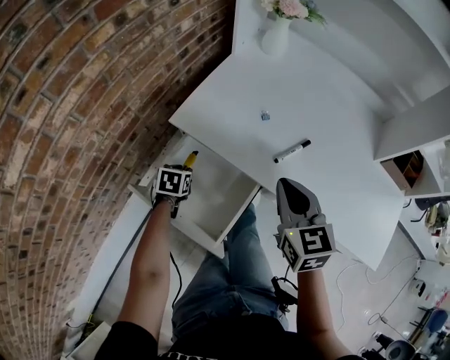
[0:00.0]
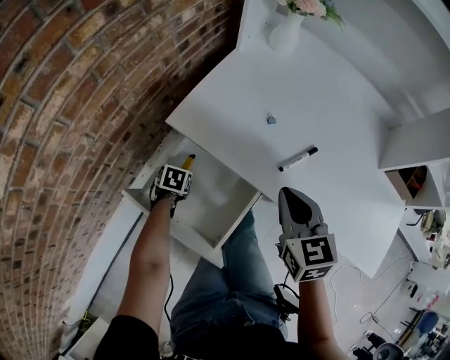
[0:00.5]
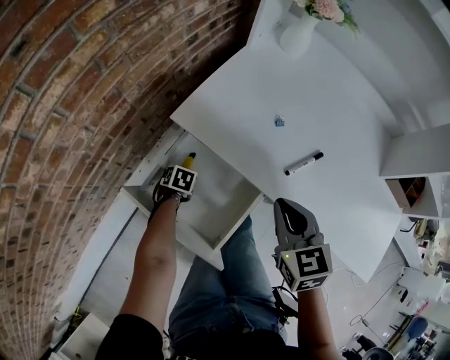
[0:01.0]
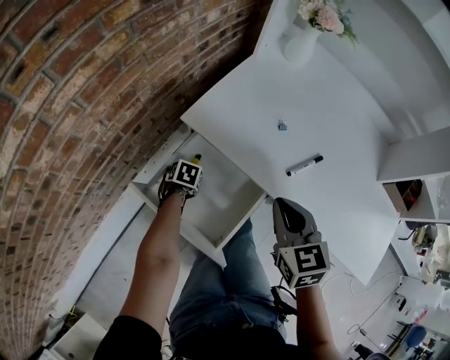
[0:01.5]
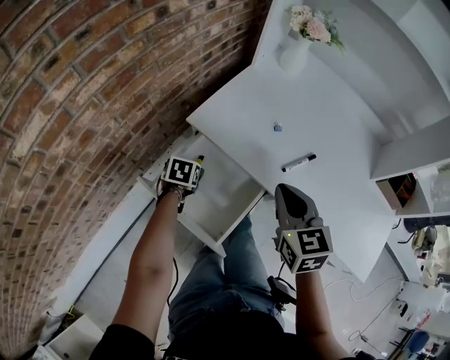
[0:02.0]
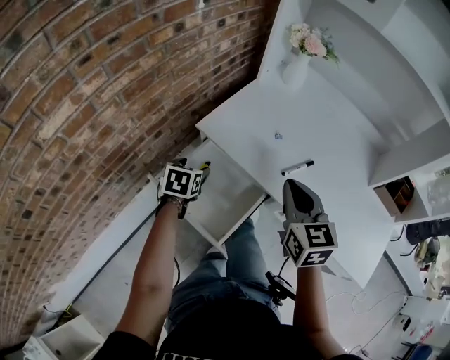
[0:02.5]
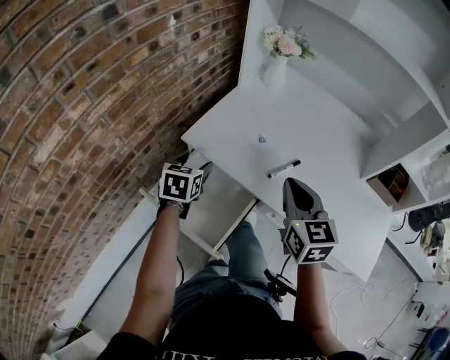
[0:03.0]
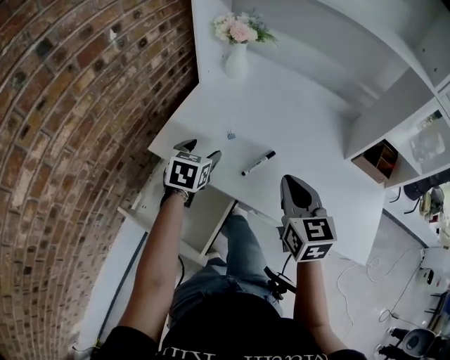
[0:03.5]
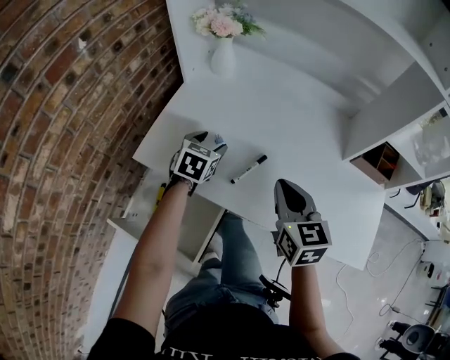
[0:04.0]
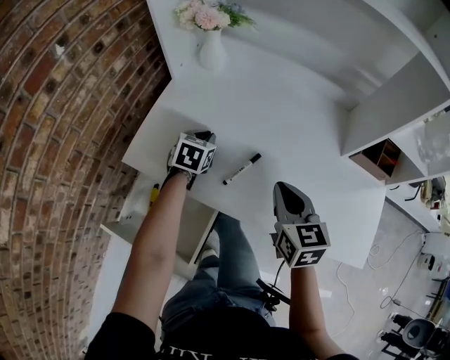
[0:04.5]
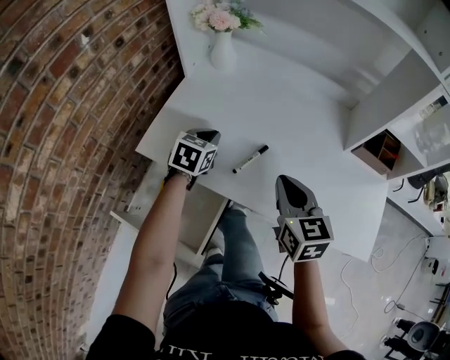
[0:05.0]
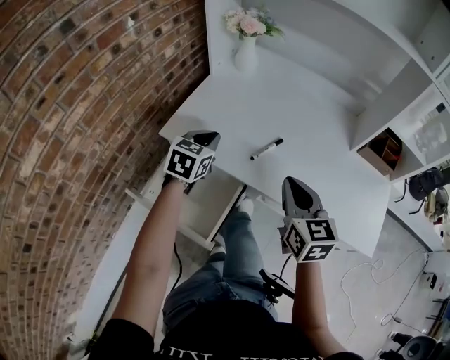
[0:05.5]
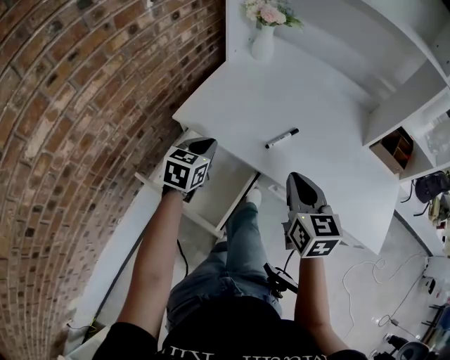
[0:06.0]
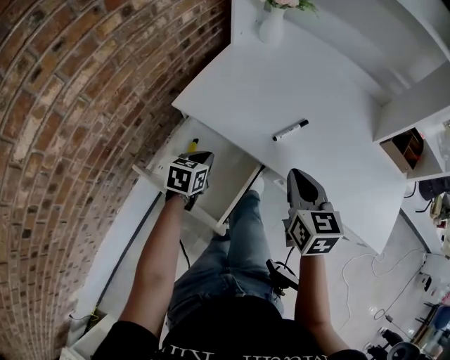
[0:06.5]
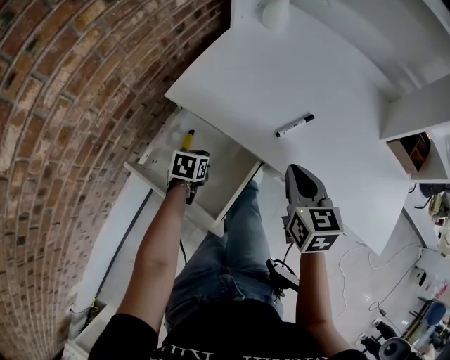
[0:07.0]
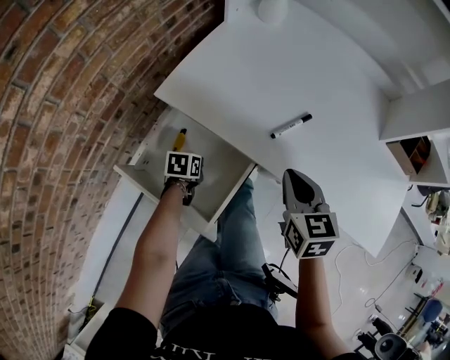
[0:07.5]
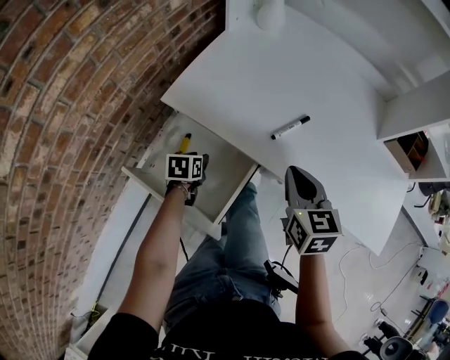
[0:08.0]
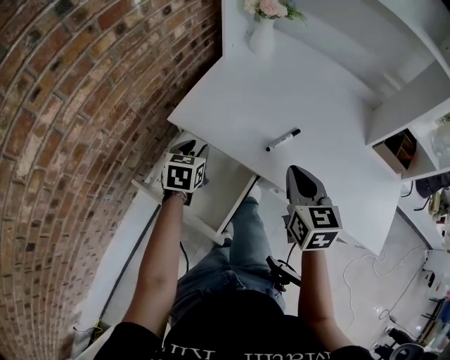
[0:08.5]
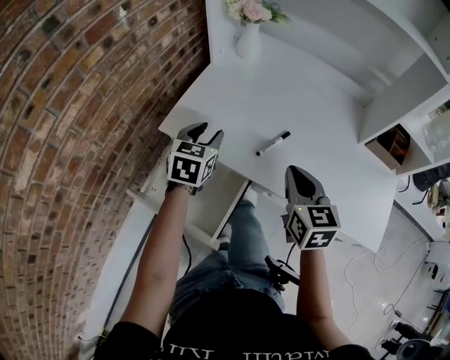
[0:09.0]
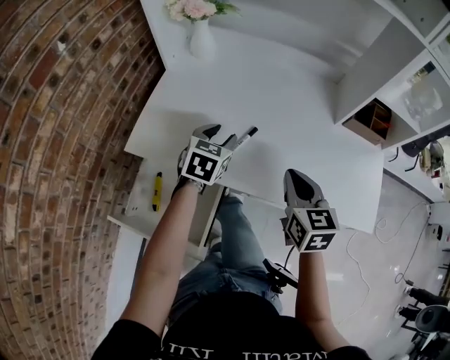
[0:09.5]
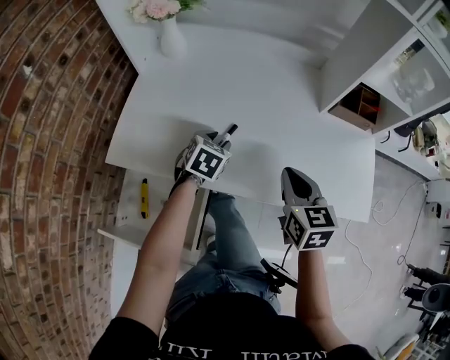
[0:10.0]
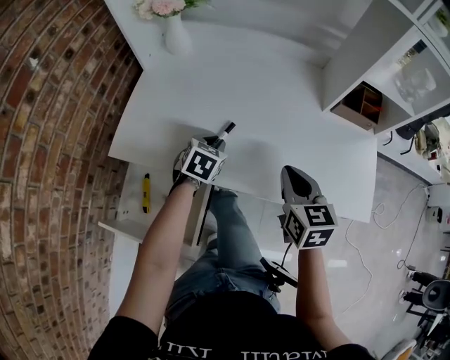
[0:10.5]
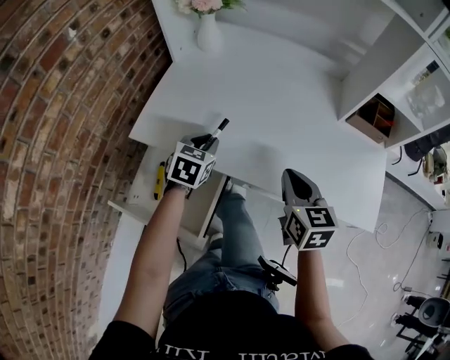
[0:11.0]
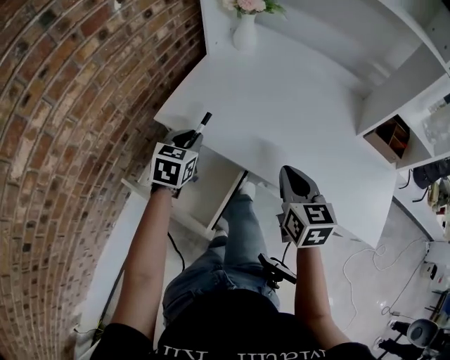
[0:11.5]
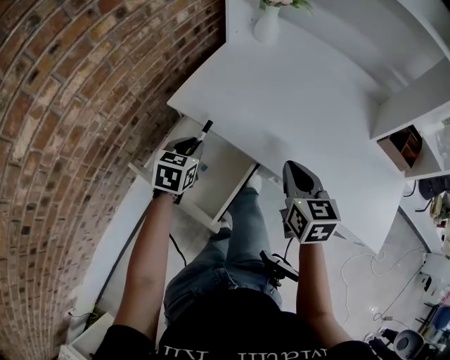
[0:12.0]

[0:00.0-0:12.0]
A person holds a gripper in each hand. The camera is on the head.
0:00.0 to 0:02.0: The left gripper travels downward and back again, some 10 cm each way, and opens its fingers.
0:02.0 to 0:04.0: The left gripper shifts about 35 cm to the right, forward and upward, and swivels about 40 degrees, while the right gripper goes some 15 cm to the right.
0:04.0 to 0:06.0: The right gripper goes some 10 cm backward, while the left gripper goes about 20 cm backward and to the left, and closes its fingers.
0:06.0 to 0:08.0: The right gripper is displaced downward by some 5 cm. Meanwhile the left gripper is displaced downward by approximately 20 cm, and turns by approximately 40 degrees.
0:08.0 to 0:10.0: The left gripper shifts some 30 cm to the right, forward and upward, and rolls clockwise, seen from behind, by roughly 50 degrees. The right gripper goes roughly 15 cm to the right, and changes its angle by roughly 20 degrees.
0:10.0 to 0:12.0: The left gripper travels to the left and backward by about 30 cm, and changes its angle by approximately 30 degrees; the right gripper heads to the left, covering about 15 cm, and swivels approximately 20 degrees.

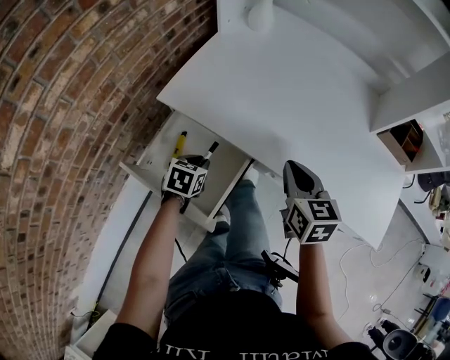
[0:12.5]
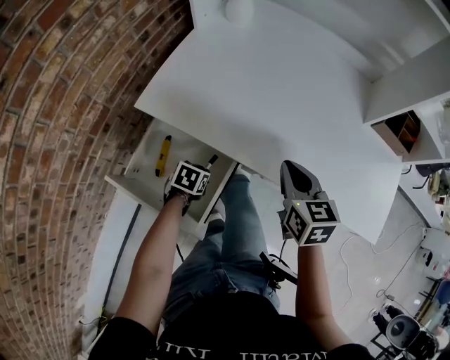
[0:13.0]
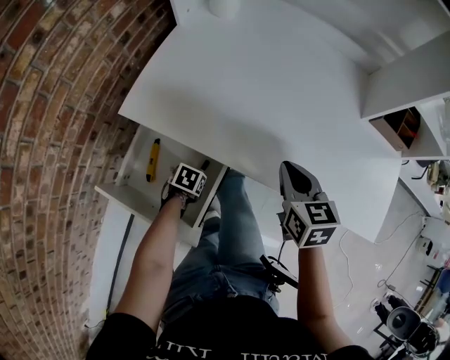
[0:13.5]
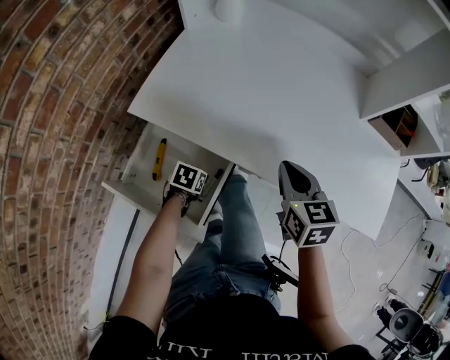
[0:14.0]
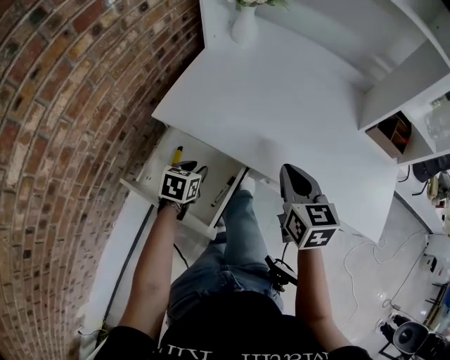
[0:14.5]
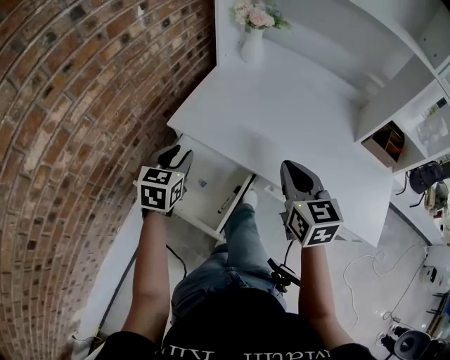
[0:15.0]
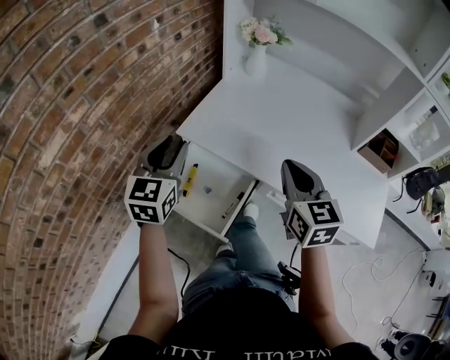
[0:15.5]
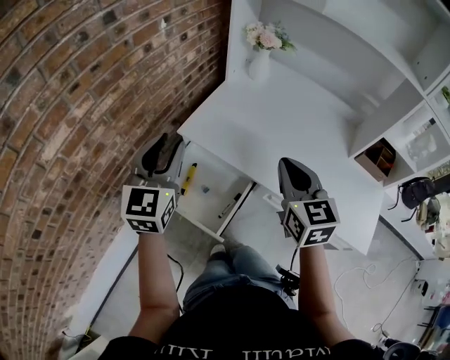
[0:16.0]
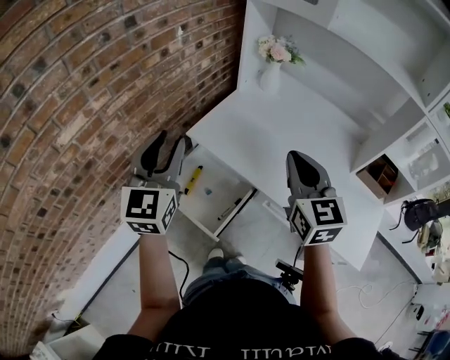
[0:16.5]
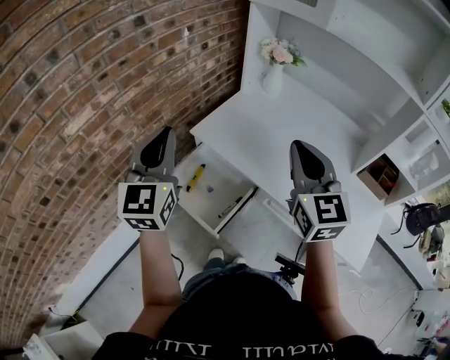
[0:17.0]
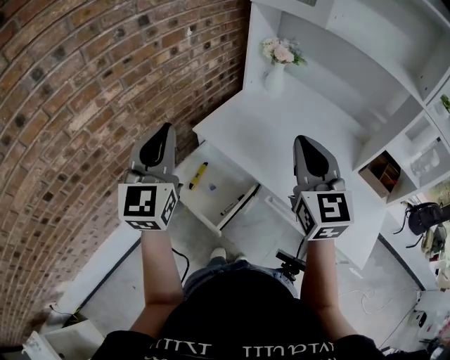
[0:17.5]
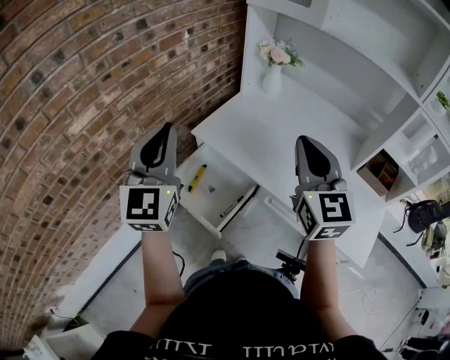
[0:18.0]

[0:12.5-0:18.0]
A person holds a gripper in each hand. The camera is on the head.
0:12.5 to 0:14.5: The left gripper reaches approximately 15 cm downward, then returns.
0:14.5 to 0:16.0: The left gripper shifts roughly 35 cm upward, and points its fingers about 50 degrees further upward. The right gripper shifts about 15 cm upward and to the left.
0:16.0 to 0:18.0: The right gripper moves upward, about 10 cm; the left gripper moves upward and backward, approximately 15 cm.

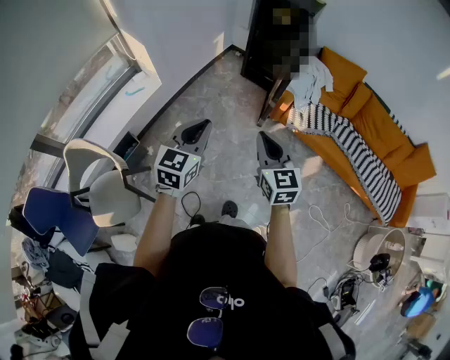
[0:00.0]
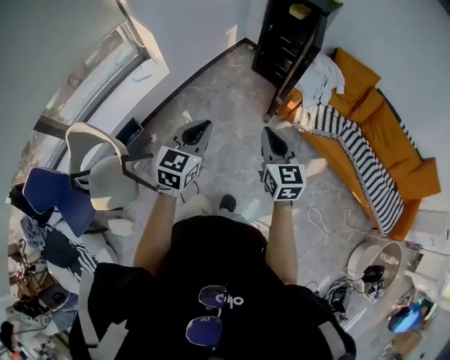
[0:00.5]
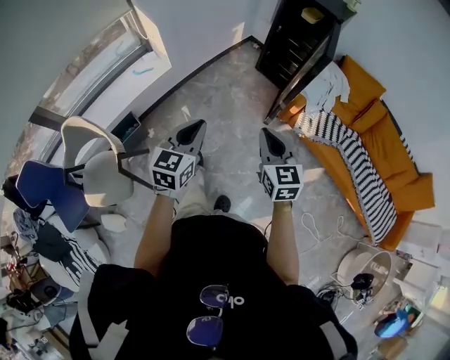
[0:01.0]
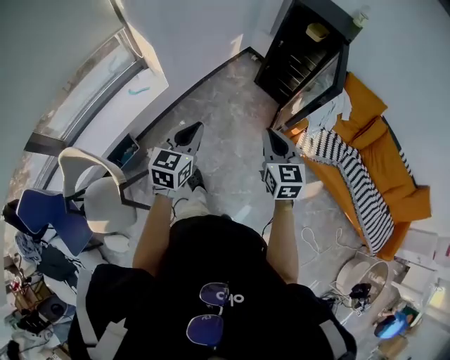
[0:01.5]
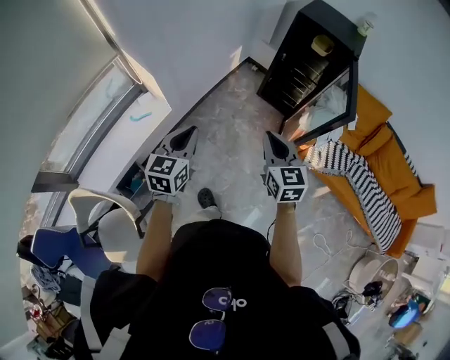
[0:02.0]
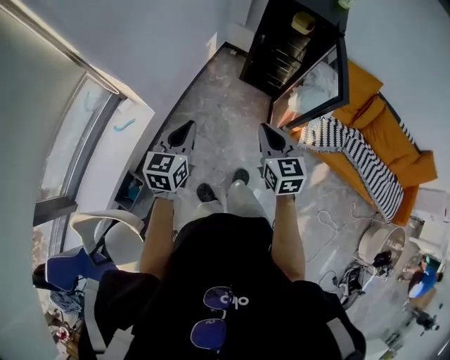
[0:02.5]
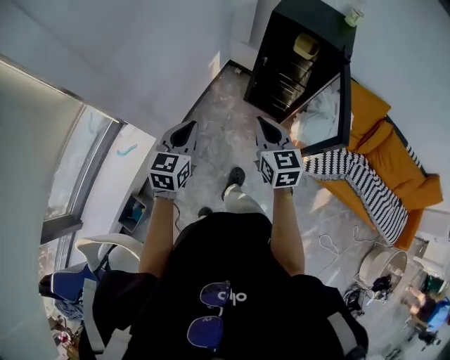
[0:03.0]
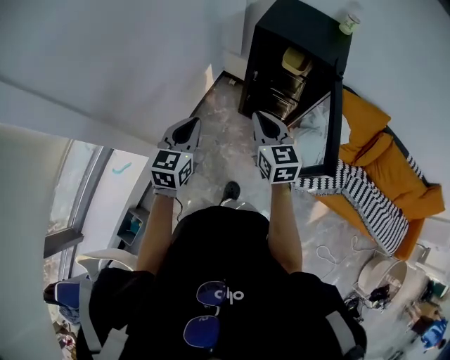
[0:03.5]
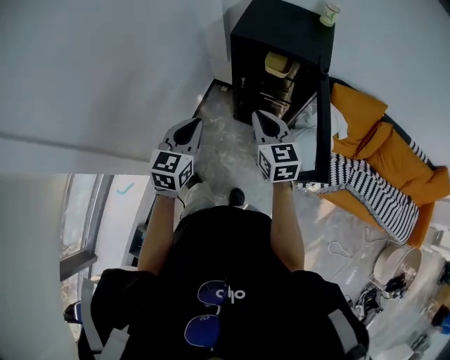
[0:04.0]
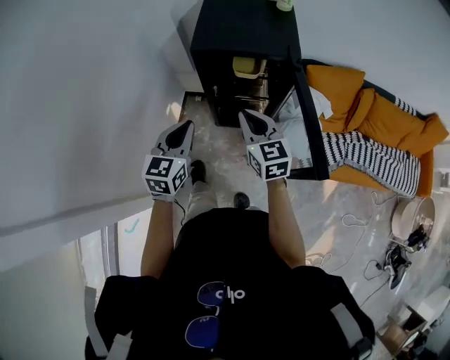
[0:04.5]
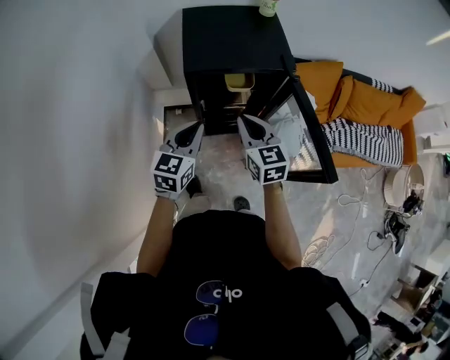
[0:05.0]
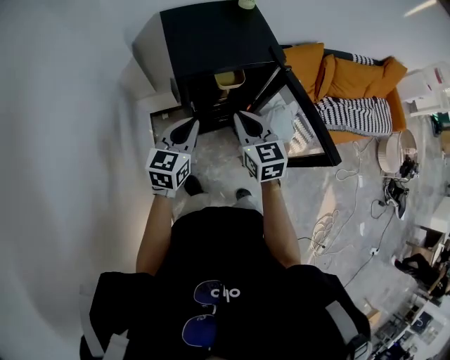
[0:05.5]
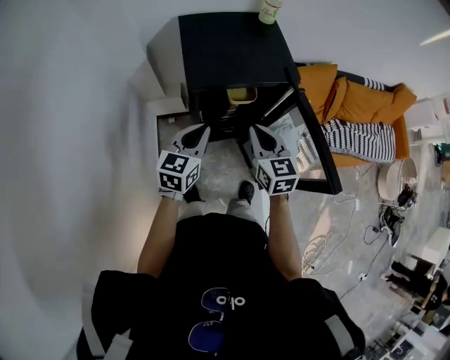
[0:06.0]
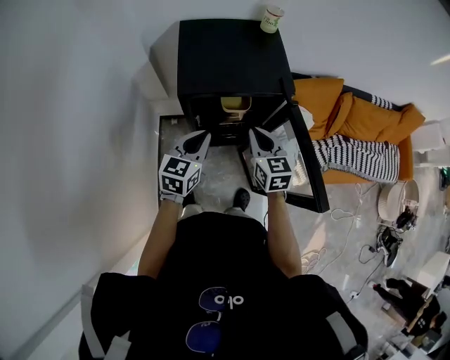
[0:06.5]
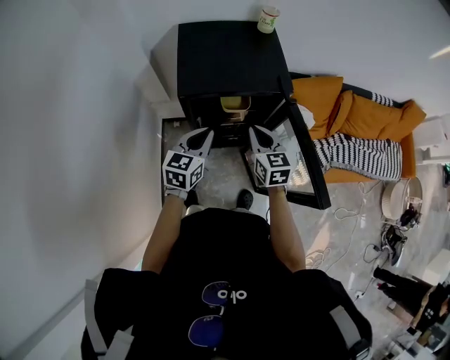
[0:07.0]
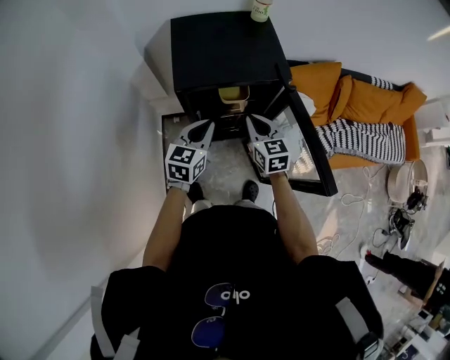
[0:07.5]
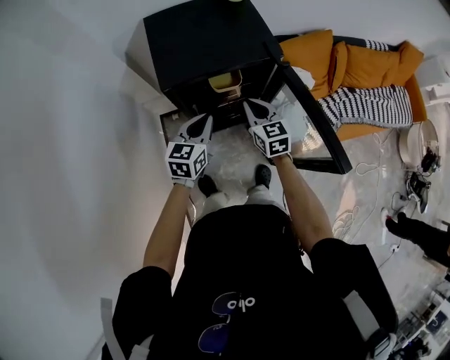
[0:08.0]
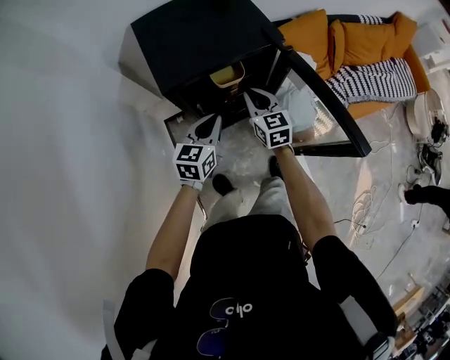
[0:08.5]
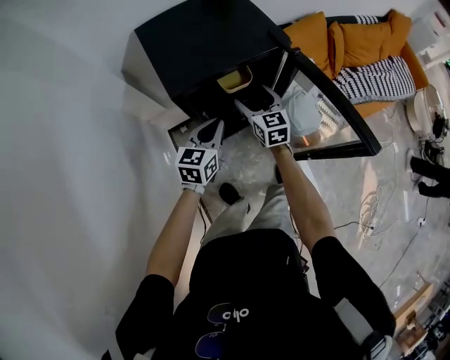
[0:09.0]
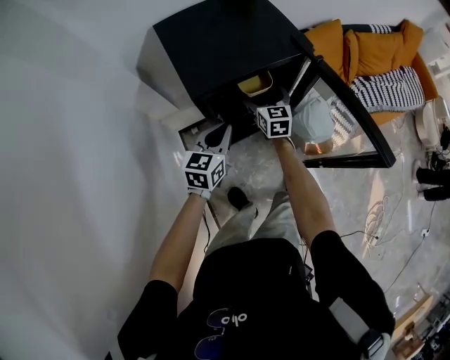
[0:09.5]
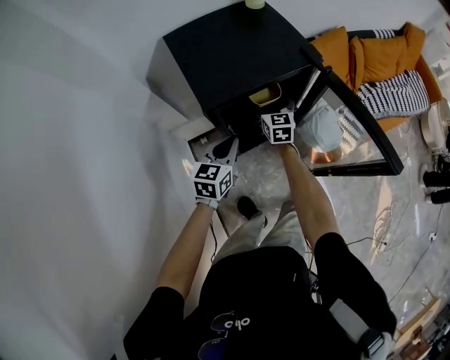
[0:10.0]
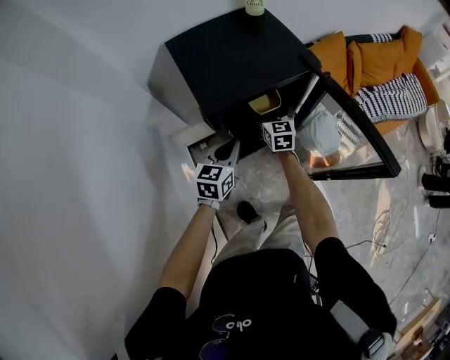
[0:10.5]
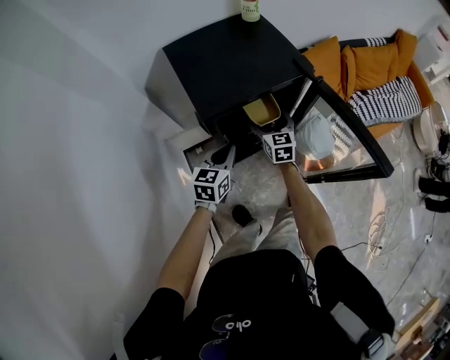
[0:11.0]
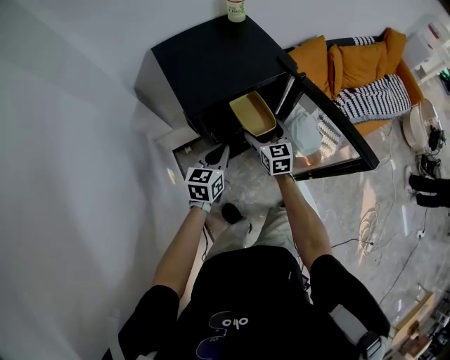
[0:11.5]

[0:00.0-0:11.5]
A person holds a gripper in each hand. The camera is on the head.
0:00.0 to 0:02.0: The right gripper heads forward, covering some 35 cm; the left gripper heads forward and to the left, covering about 40 cm.
0:02.0 to 0:04.0: The pair of grippers is taken forward and to the right, roughly 40 cm.
0:04.0 to 0:06.0: The left gripper changes place by approximately 25 cm, and changes its angle by some 40 degrees. The right gripper shifts by roughly 15 cm, and changes its angle by roughly 30 degrees.
0:06.0 to 0:07.5: The left gripper shifts roughly 5 cm to the right; the right gripper heads downward, covering approximately 5 cm.
0:07.5 to 0:09.5: The right gripper travels downward, forward and to the left by roughly 15 cm, changes its angle by about 20 degrees, and opens up; the left gripper shifts approximately 10 cm downward and to the left.
0:09.5 to 0:11.5: The right gripper heads backward, covering some 5 cm.
